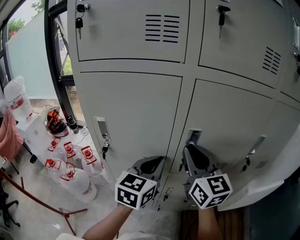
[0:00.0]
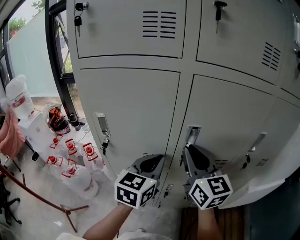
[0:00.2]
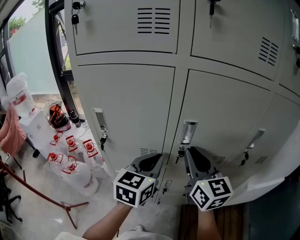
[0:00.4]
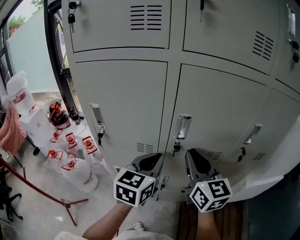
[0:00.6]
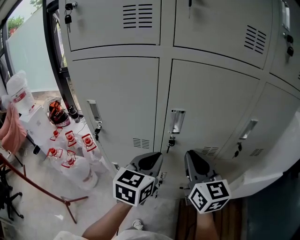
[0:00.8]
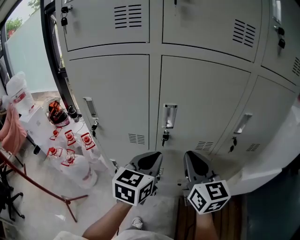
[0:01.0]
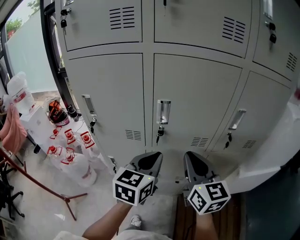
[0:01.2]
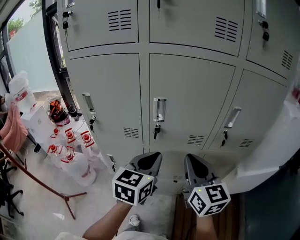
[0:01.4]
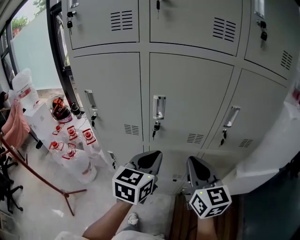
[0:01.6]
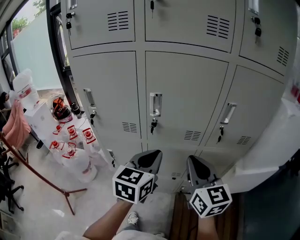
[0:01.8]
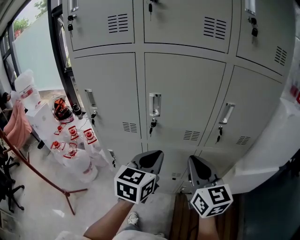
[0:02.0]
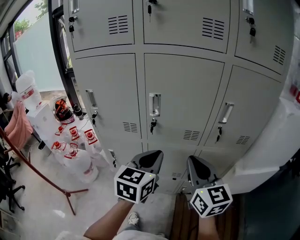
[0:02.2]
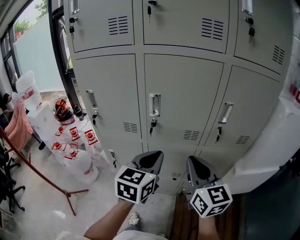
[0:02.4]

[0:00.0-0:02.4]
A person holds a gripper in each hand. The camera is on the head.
0.0 to 1.2 s: The left gripper heads to the right and backward, covering about 10 cm. Meanwhile the right gripper heads to the right, backward and downward, covering about 15 cm.
1.2 to 2.4 s: The left gripper moves backward, about 5 cm. Meanwhile the right gripper travels backward and to the right by some 10 cm.

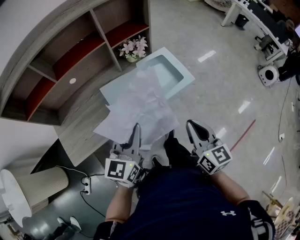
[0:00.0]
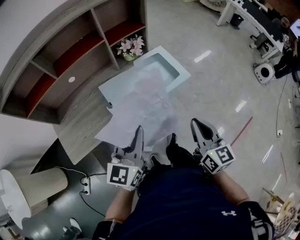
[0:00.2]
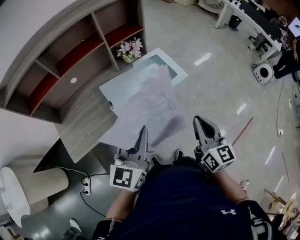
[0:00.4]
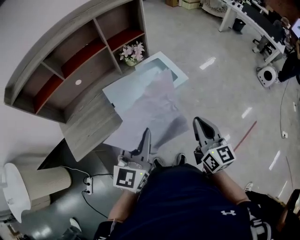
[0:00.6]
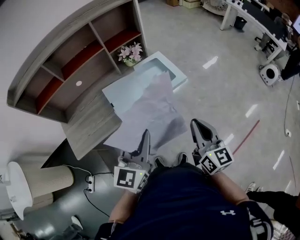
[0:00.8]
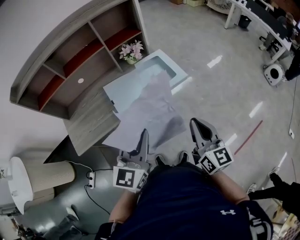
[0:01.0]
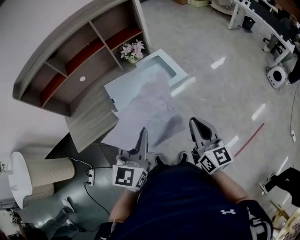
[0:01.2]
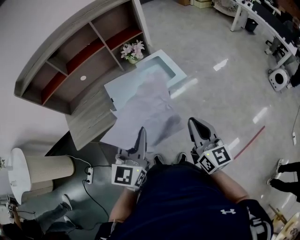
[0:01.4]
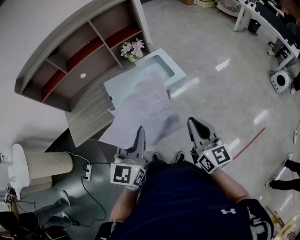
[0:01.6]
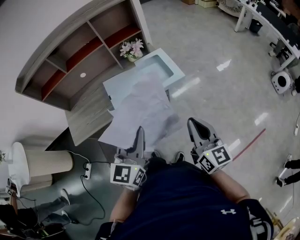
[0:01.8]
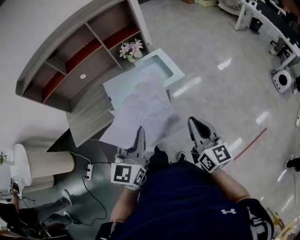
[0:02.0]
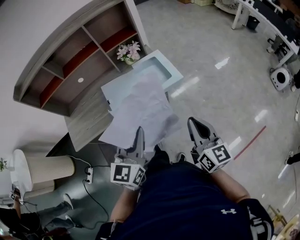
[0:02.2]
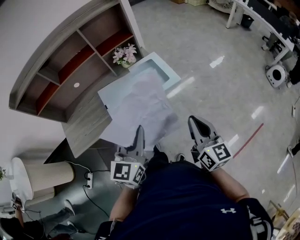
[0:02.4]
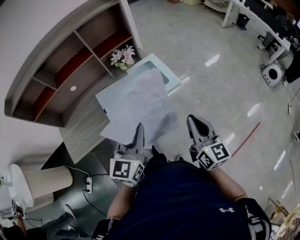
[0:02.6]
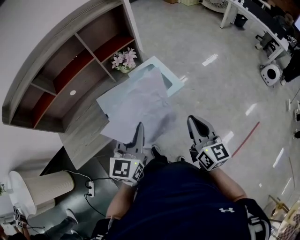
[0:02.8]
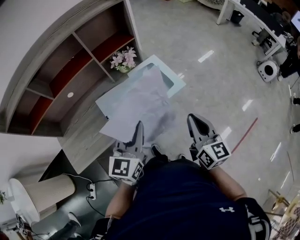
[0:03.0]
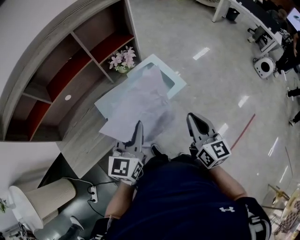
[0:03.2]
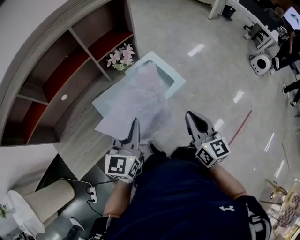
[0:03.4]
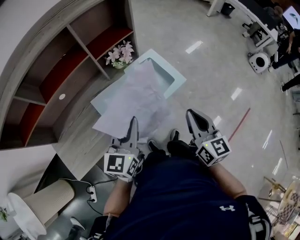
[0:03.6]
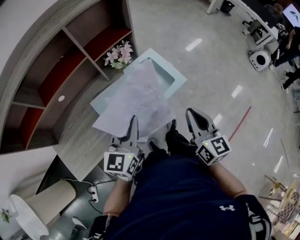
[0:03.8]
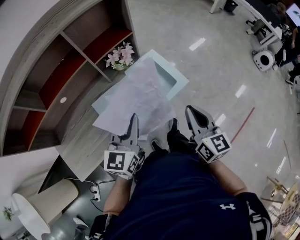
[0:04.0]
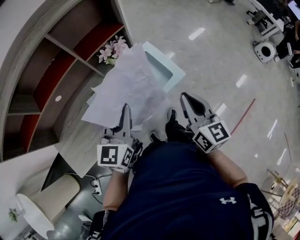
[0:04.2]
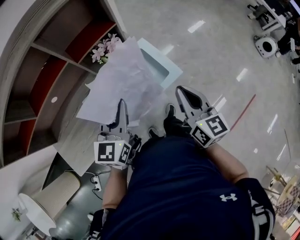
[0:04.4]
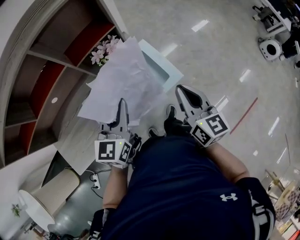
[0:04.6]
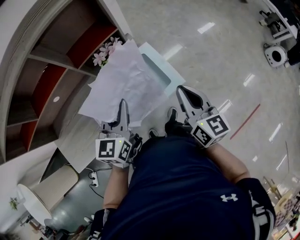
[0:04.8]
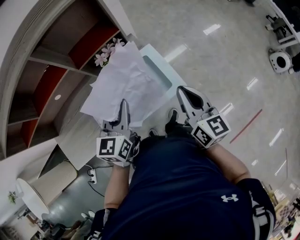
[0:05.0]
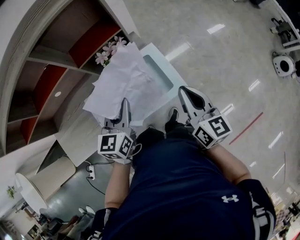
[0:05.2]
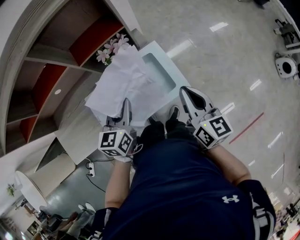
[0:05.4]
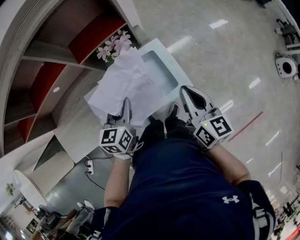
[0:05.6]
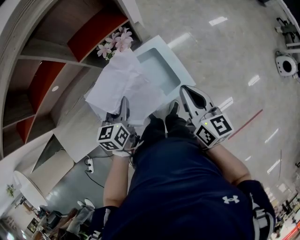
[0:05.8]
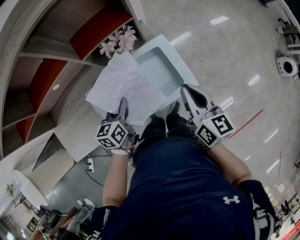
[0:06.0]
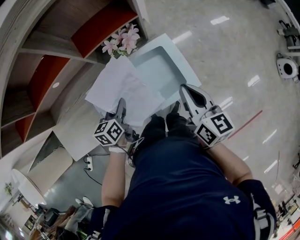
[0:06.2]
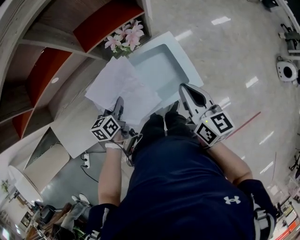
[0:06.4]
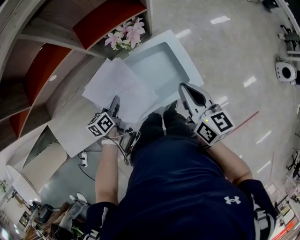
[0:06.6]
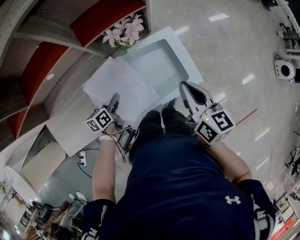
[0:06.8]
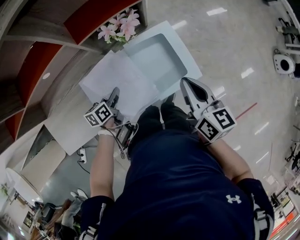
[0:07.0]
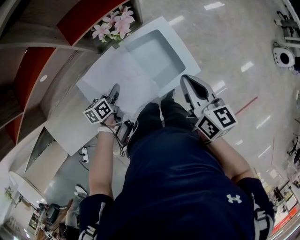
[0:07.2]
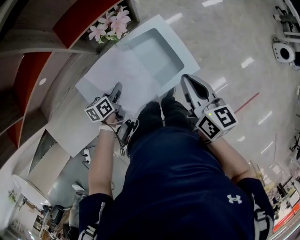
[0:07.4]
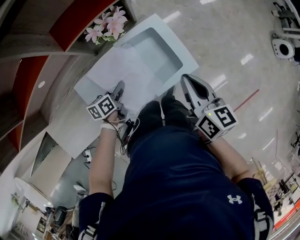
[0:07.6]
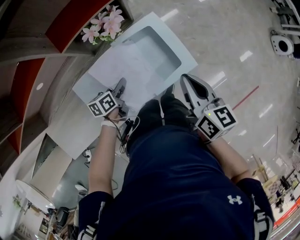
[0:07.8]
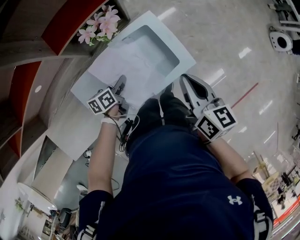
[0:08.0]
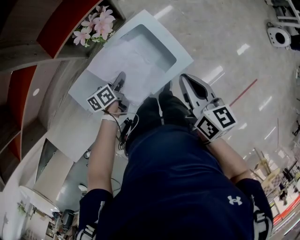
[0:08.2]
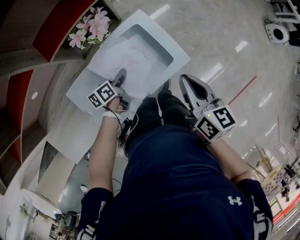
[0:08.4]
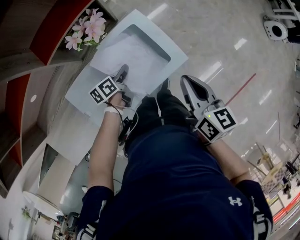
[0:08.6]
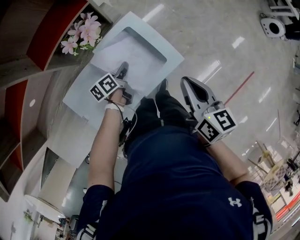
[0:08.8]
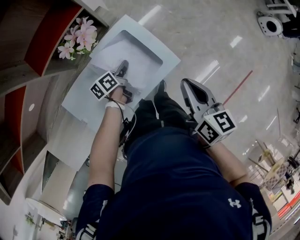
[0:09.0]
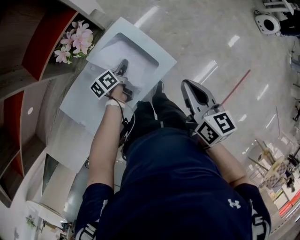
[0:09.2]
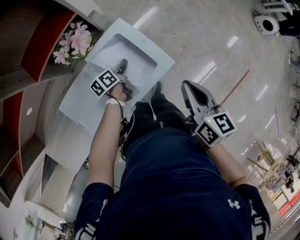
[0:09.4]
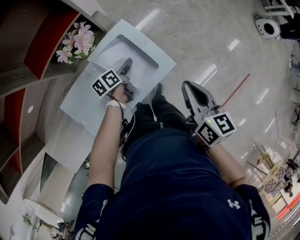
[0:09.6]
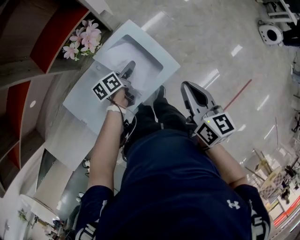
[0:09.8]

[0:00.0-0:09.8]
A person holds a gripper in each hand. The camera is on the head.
0.0 to 1.4 s: The left gripper moves to the right, backward and upward, some 20 cm; the right gripper travels to the right and backward by approximately 15 cm.
1.4 to 2.8 s: The two grippers go some 10 cm forward.
2.8 to 4.2 s: Both grippers travel together forward and to the left, roughly 15 cm.
4.2 to 5.6 s: The right gripper moves forward, some 15 cm. Meanwhile the left gripper moves downward and forward, approximately 15 cm, and turns by roughly 20 degrees.
5.6 to 7.0 s: The right gripper goes about 5 cm to the left. The left gripper heads downward and to the left, covering roughly 20 cm, and turns by roughly 30 degrees.
7.0 to 8.4 s: The left gripper goes approximately 15 cm to the right and forward. Meanwhile the right gripper is displaced to the right by some 5 cm.
8.4 to 9.8 s: The left gripper goes about 10 cm to the right and forward, and opens.

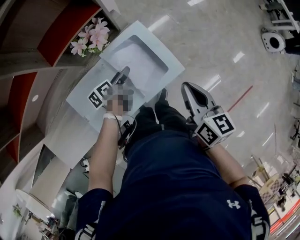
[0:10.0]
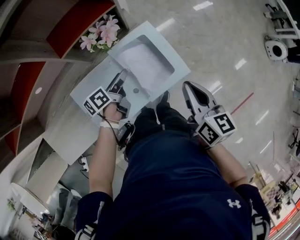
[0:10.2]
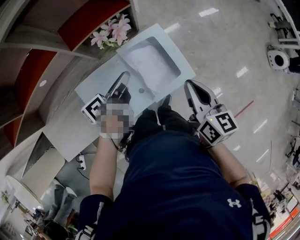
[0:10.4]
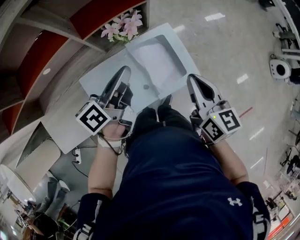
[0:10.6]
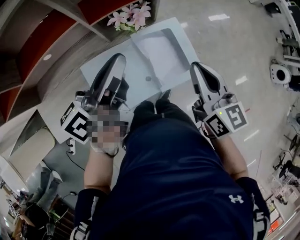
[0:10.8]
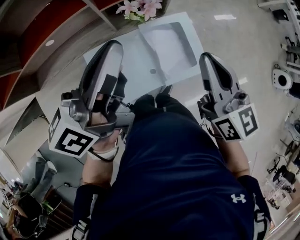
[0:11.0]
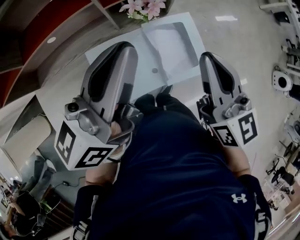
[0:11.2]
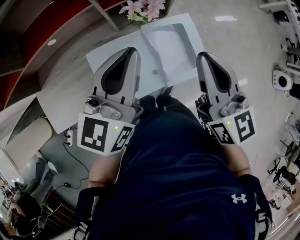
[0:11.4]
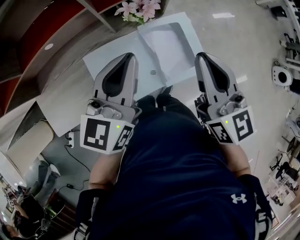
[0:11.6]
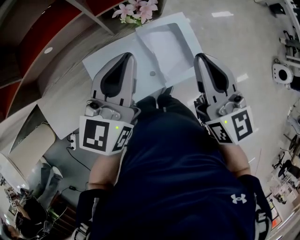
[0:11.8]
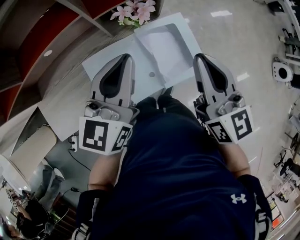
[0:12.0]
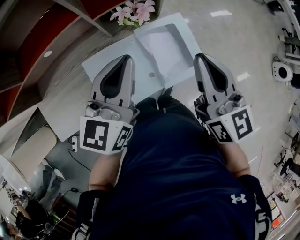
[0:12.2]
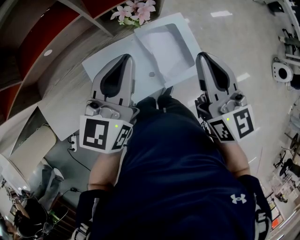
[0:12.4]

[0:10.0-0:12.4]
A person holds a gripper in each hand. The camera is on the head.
10.0 to 11.2 s: The right gripper moves upward and to the left, about 20 cm, and changes its angle by roughly 30 degrees; the left gripper moves upward, about 40 cm, tips its fingers upward by about 40 degrees, and closes up.
11.2 to 12.4 s: The left gripper heads downward, covering approximately 10 cm, and turns by roughly 30 degrees.

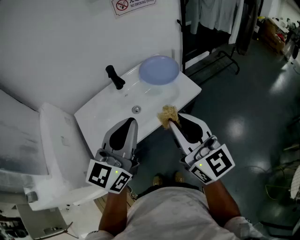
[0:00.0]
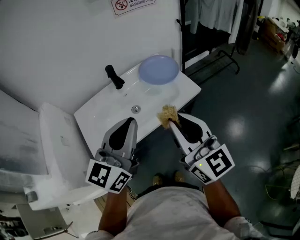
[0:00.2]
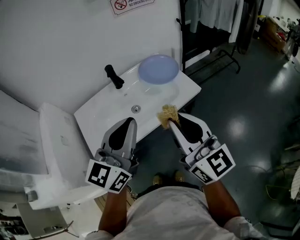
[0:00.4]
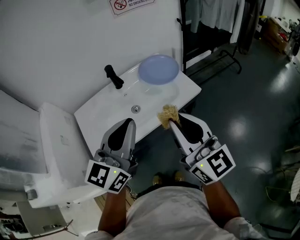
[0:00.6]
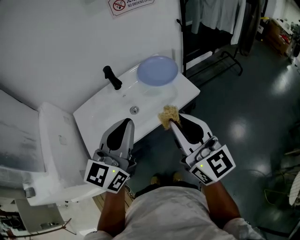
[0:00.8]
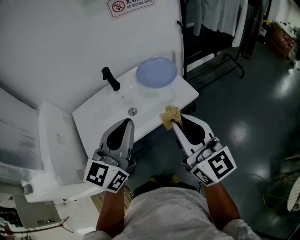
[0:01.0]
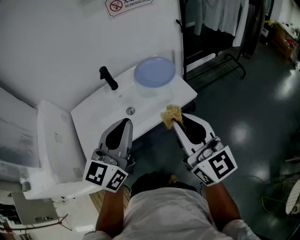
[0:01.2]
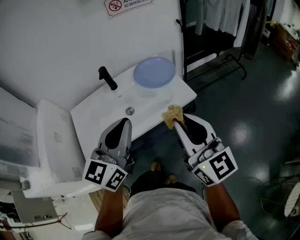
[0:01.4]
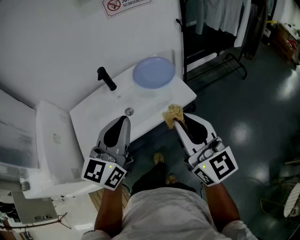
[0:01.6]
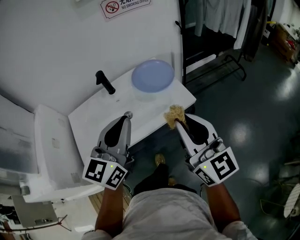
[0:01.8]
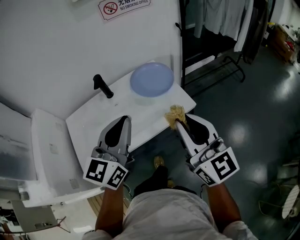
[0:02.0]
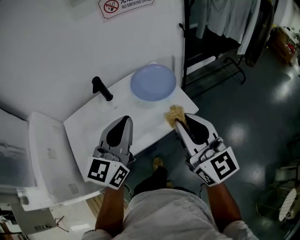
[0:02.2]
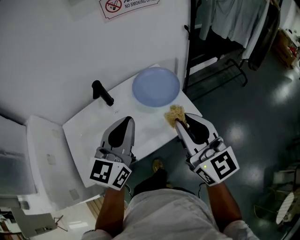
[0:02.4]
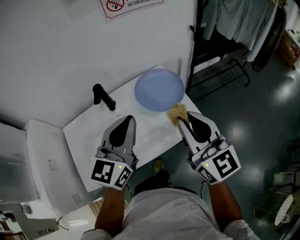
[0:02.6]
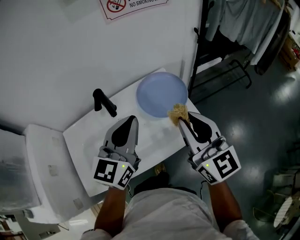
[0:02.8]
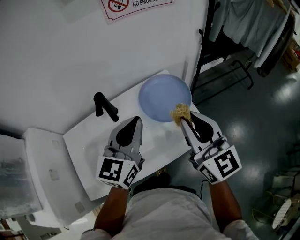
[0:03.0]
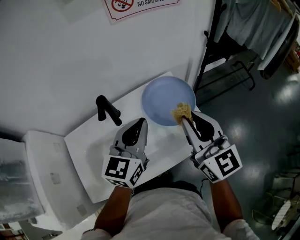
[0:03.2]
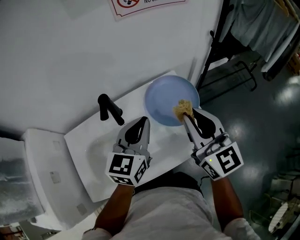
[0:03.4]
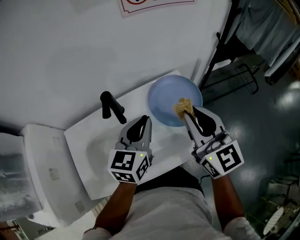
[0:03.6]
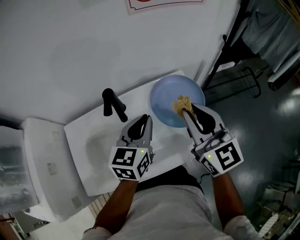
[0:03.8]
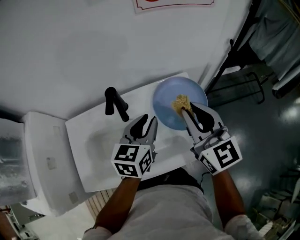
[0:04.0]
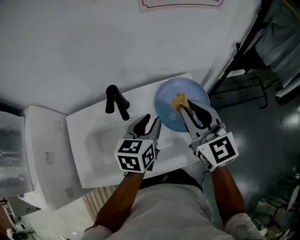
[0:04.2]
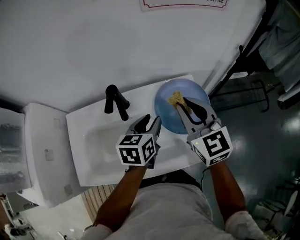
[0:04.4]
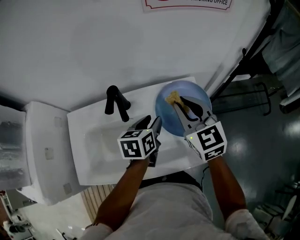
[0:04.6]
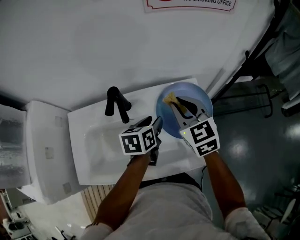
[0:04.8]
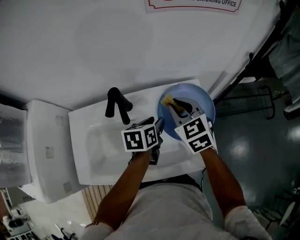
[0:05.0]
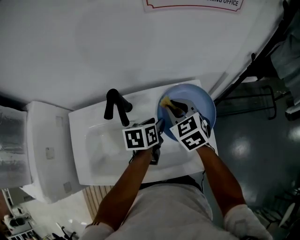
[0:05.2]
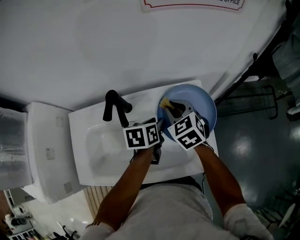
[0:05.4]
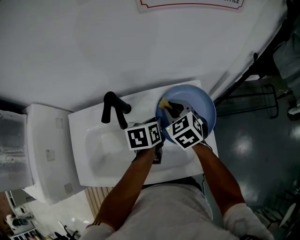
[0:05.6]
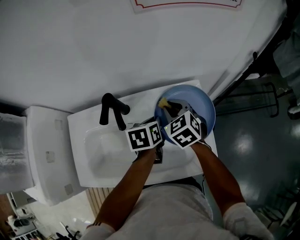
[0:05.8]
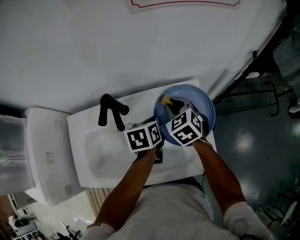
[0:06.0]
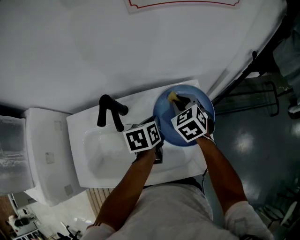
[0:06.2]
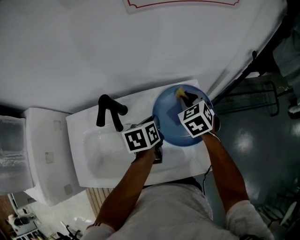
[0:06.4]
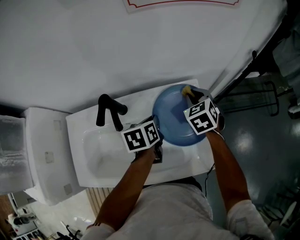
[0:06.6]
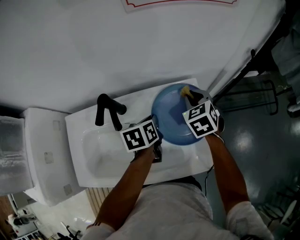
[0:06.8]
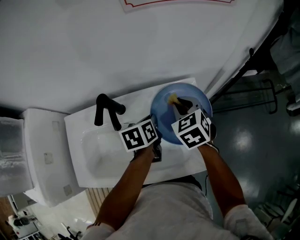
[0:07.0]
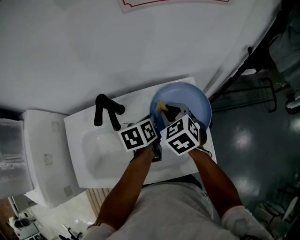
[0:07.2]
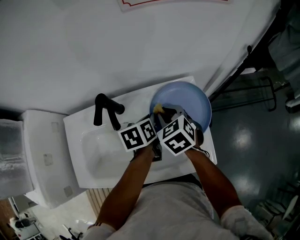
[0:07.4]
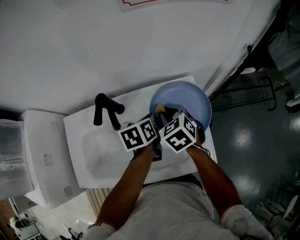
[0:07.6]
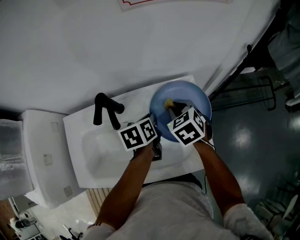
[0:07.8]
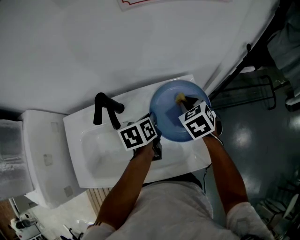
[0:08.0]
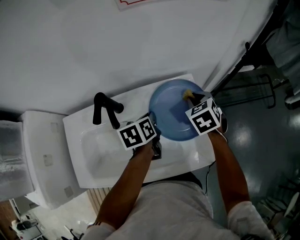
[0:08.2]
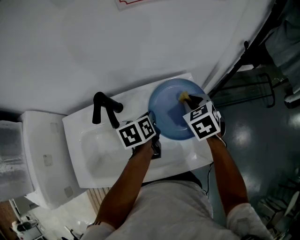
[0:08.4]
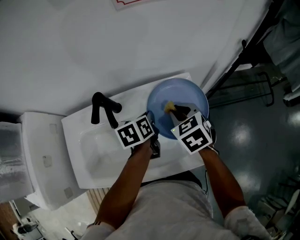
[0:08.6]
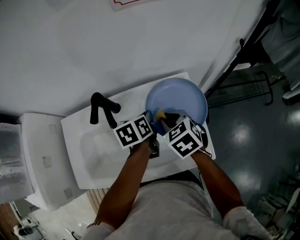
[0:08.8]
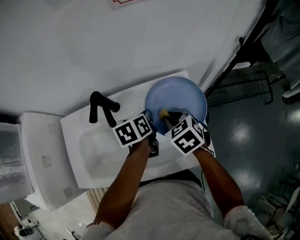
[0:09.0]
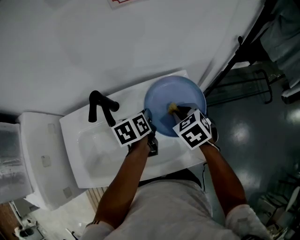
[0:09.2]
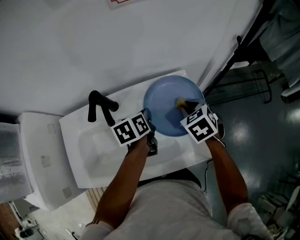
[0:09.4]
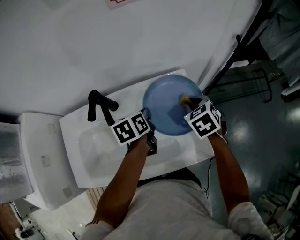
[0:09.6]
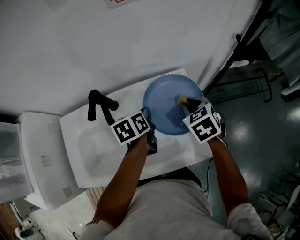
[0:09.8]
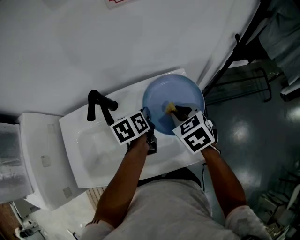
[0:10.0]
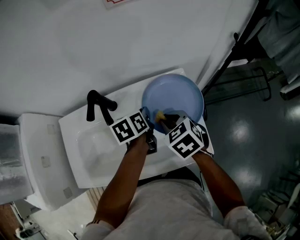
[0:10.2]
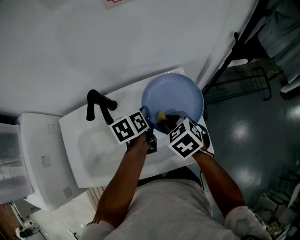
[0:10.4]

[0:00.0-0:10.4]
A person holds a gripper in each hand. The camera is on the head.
0.0 to 1.4 s: The left gripper goes roughly 5 cm to the right, while the right gripper heads to the right, covering roughly 10 cm.
1.4 to 3.0 s: The two grippers go about 25 cm forward.
3.0 to 4.4 s: The left gripper travels downward and forward by about 15 cm, swivels roughly 40 degrees, and opens up. The right gripper moves forward and downward, some 15 cm, and rotates some 20 degrees.
4.4 to 6.0 s: The left gripper is displaced downward and forward by about 10 cm, changes its angle by roughly 20 degrees, and closes its fingers, while the right gripper heads downward and forward, covering about 20 cm, and turns by approximately 30 degrees.
6.0 to 7.4 s: The right gripper goes to the right and returns, approximately 10 cm each way.
7.4 to 9.0 s: The right gripper goes to the right and returns, about 15 cm each way.
9.0 to 10.4 s: The right gripper reaches approximately 10 cm to the right, then returns.
